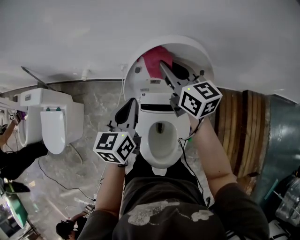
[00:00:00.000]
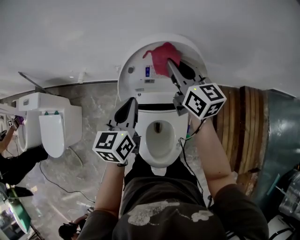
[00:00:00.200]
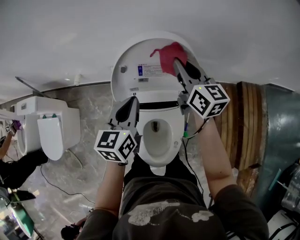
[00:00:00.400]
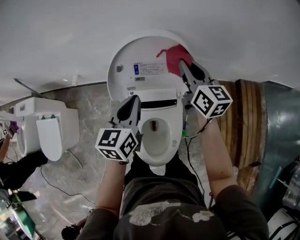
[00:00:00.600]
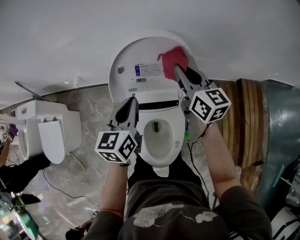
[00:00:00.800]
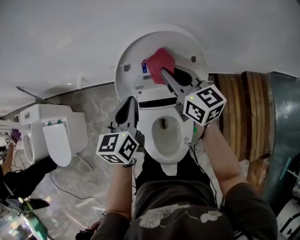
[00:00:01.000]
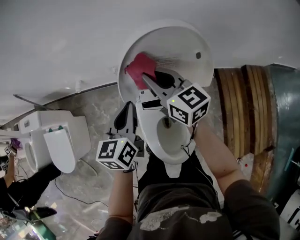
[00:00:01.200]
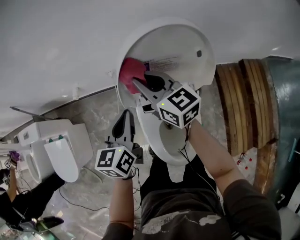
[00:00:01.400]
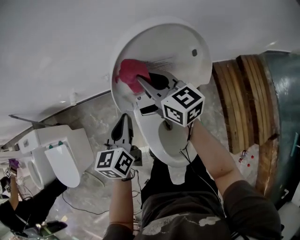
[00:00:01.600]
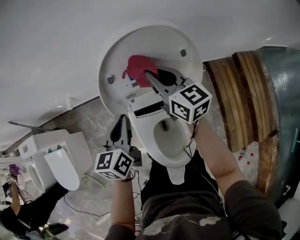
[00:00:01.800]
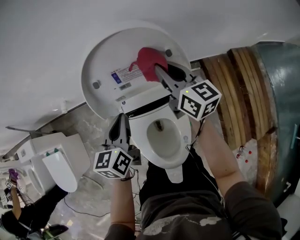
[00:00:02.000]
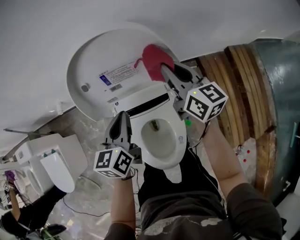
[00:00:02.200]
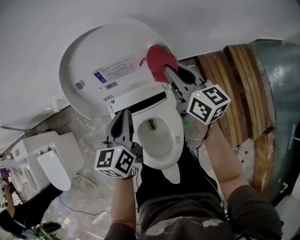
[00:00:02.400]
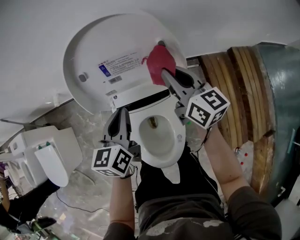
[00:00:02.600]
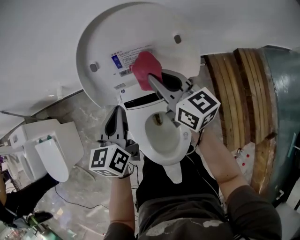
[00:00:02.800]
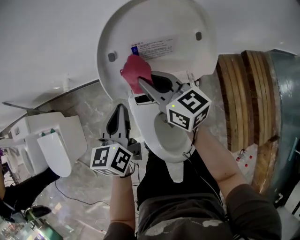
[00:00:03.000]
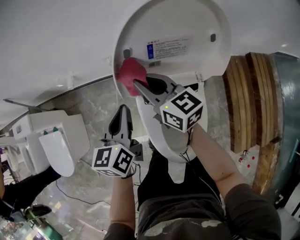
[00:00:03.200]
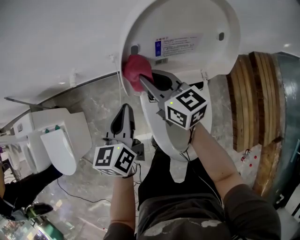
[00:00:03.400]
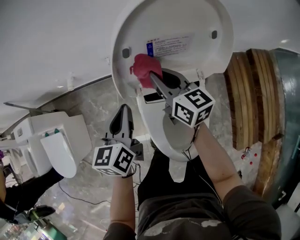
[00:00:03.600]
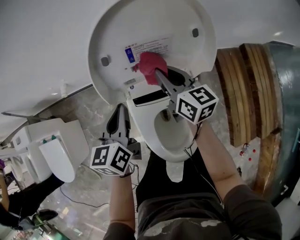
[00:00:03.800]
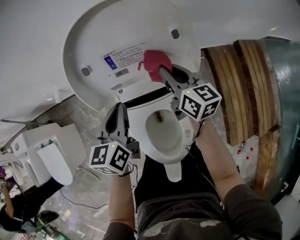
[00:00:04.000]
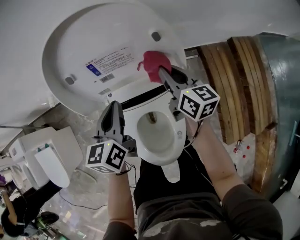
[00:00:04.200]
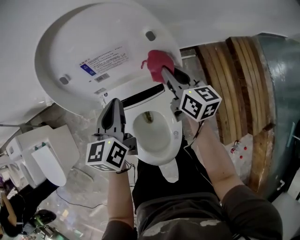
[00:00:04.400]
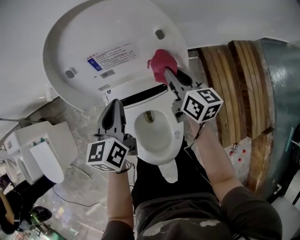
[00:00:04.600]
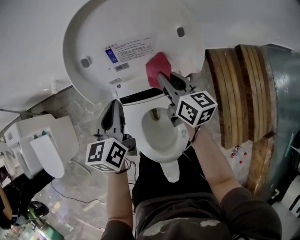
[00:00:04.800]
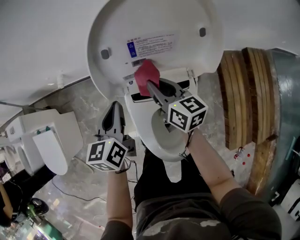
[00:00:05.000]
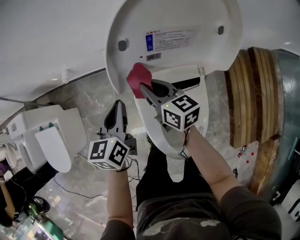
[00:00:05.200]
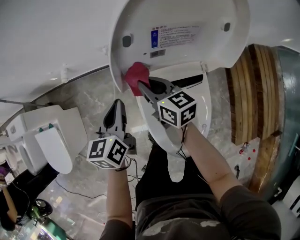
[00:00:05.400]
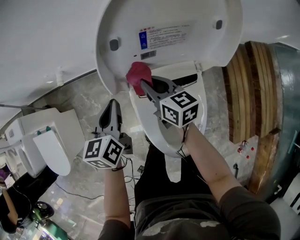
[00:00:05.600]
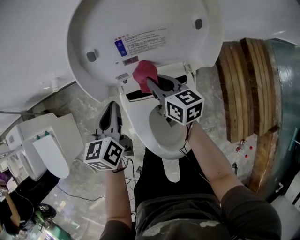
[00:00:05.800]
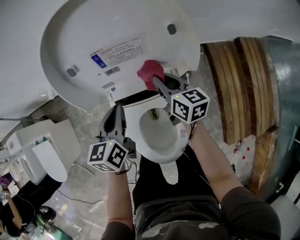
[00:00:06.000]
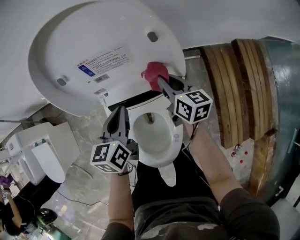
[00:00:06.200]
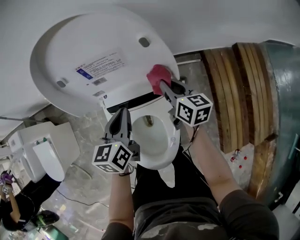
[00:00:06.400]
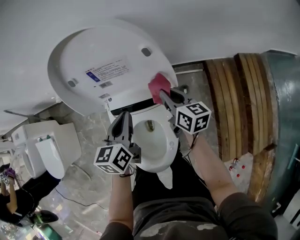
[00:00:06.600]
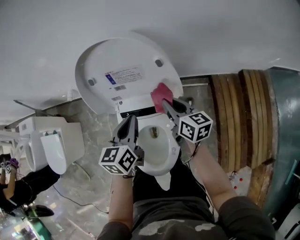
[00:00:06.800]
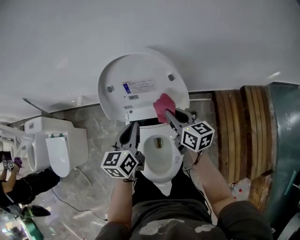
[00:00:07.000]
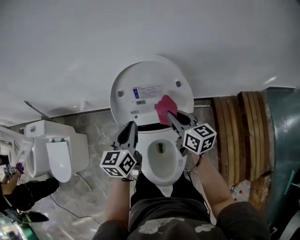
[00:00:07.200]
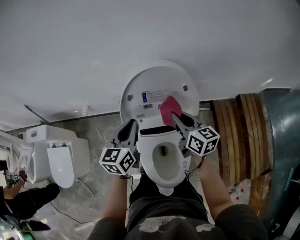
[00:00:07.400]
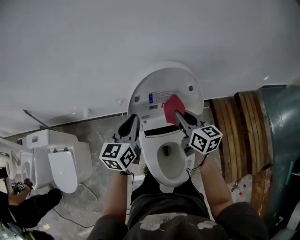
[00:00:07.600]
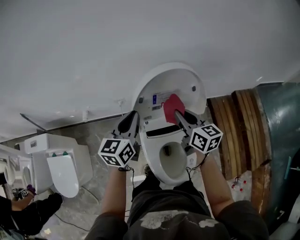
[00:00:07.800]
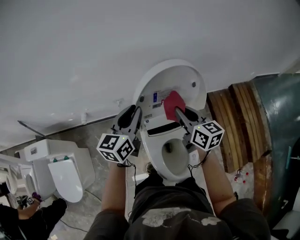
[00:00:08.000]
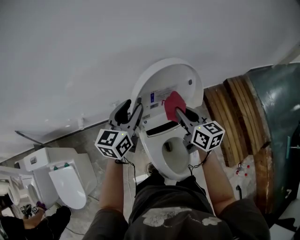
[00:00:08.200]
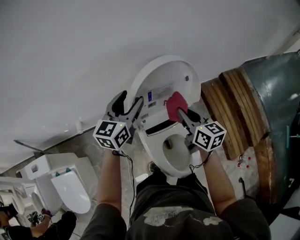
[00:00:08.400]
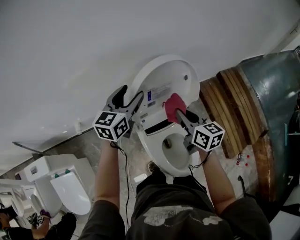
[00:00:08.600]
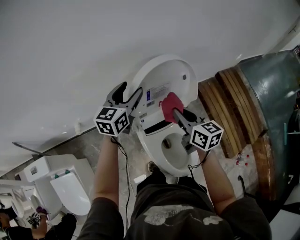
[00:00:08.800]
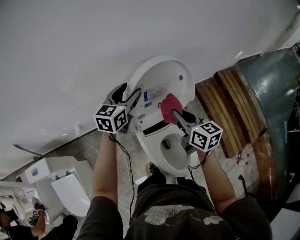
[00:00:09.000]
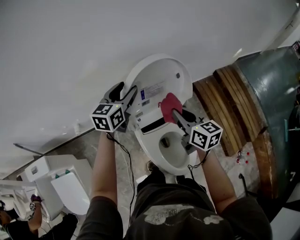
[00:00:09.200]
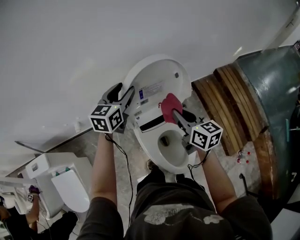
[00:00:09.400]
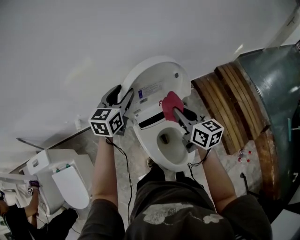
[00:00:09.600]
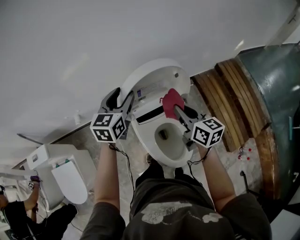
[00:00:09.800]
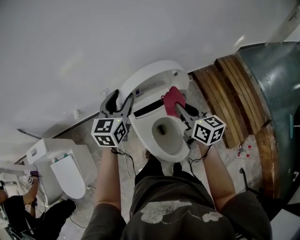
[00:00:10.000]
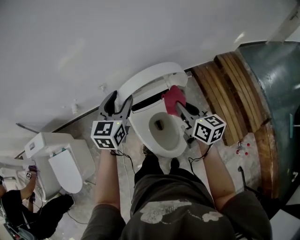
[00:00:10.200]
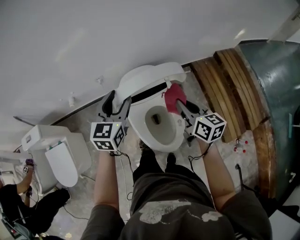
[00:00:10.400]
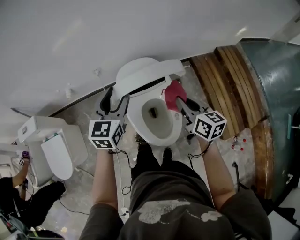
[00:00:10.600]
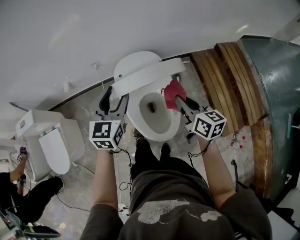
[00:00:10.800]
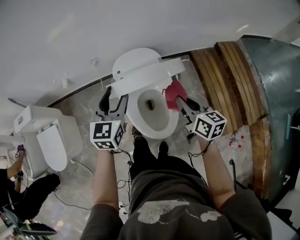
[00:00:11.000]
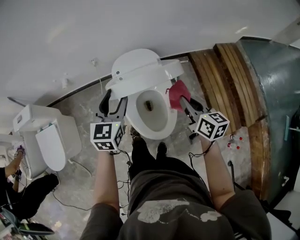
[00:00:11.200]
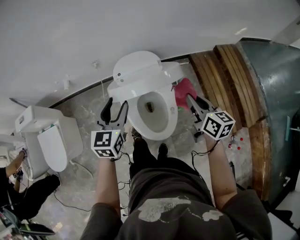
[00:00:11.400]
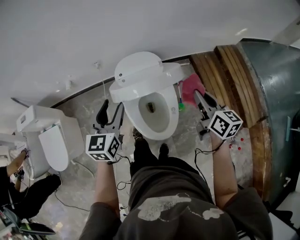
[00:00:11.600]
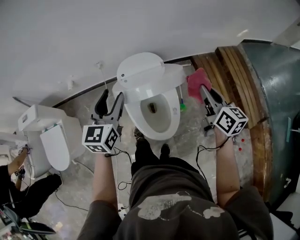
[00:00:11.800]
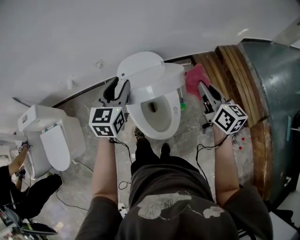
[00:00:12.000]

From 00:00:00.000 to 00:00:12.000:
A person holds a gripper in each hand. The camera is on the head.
From 00:00:00.000 to 00:00:01.600: Both grippers travel together downward, approximately 10 cm. The left gripper travels to the right and back again, about 5 cm each way. The right gripper goes to the right and returns, about 15 cm each way.
From 00:00:01.600 to 00:00:03.000: The right gripper goes about 5 cm downward, and goes to the right and returns, about 20 cm each way, while the left gripper reaches approximately 15 cm to the right, then returns.
From 00:00:03.000 to 00:00:04.400: The right gripper goes some 20 cm to the right, and changes its angle by roughly 30 degrees. The left gripper shifts approximately 15 cm to the right.
From 00:00:04.400 to 00:00:06.000: Both grippers move downward, approximately 5 cm. The left gripper goes to the left and returns, some 20 cm each way, while the right gripper reaches roughly 30 cm to the left, then returns.
From 00:00:06.000 to 00:00:07.600: Both grippers move upward, roughly 20 cm.
From 00:00:07.600 to 00:00:09.000: The left gripper moves forward, about 10 cm, changes its angle by roughly 30 degrees, and opens up, while the right gripper changes place by about 5 cm.
From 00:00:09.000 to 00:00:10.400: The left gripper heads backward, covering about 20 cm. Meanwhile the right gripper goes roughly 20 cm backward and to the right.
From 00:00:10.400 to 00:00:12.000: The right gripper travels to the right and upward by approximately 10 cm.

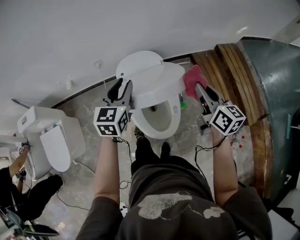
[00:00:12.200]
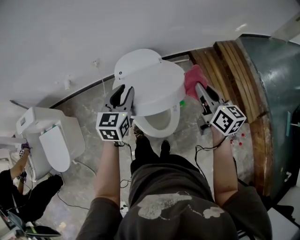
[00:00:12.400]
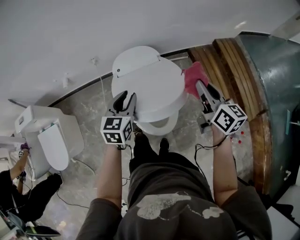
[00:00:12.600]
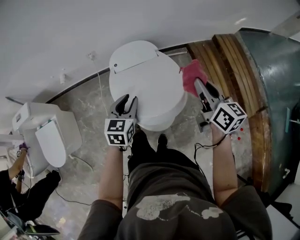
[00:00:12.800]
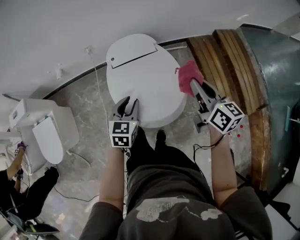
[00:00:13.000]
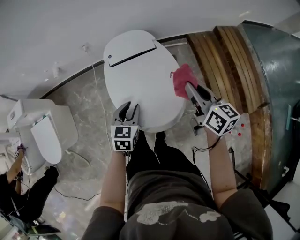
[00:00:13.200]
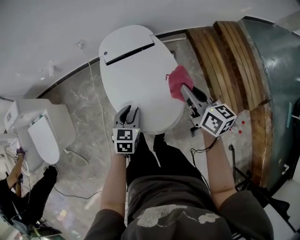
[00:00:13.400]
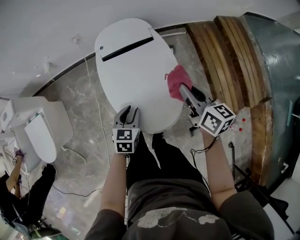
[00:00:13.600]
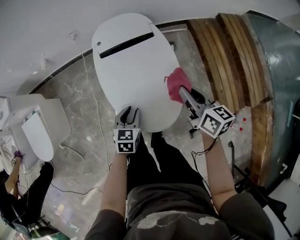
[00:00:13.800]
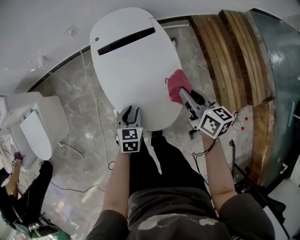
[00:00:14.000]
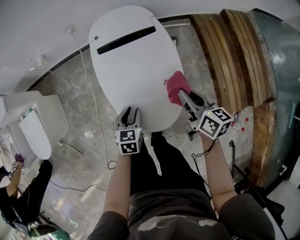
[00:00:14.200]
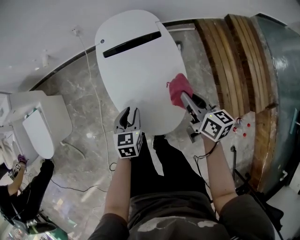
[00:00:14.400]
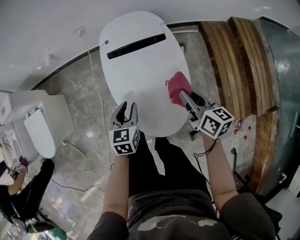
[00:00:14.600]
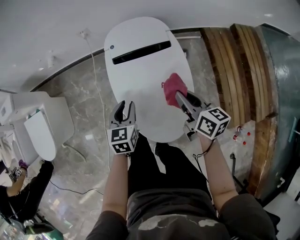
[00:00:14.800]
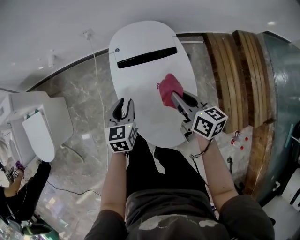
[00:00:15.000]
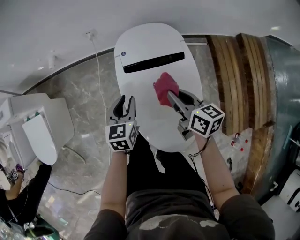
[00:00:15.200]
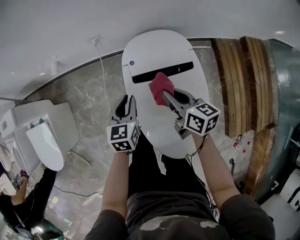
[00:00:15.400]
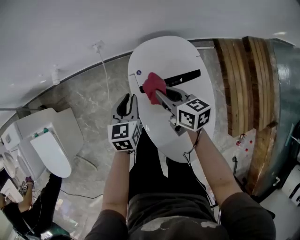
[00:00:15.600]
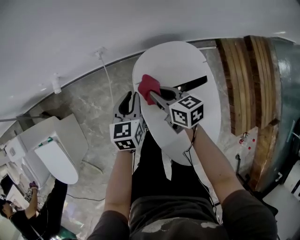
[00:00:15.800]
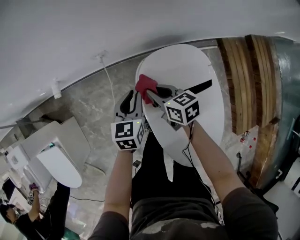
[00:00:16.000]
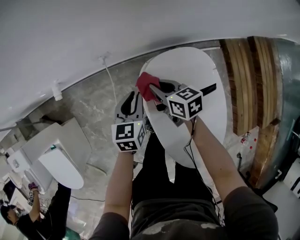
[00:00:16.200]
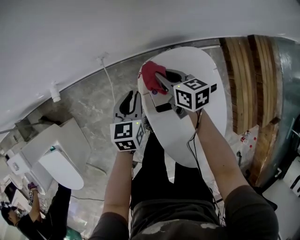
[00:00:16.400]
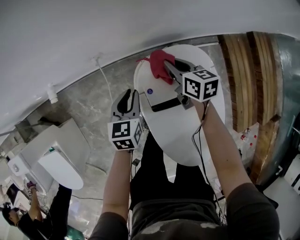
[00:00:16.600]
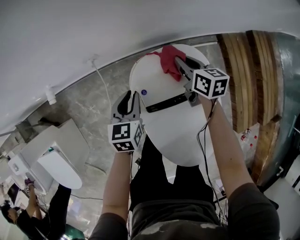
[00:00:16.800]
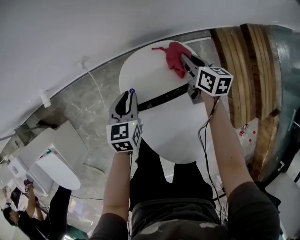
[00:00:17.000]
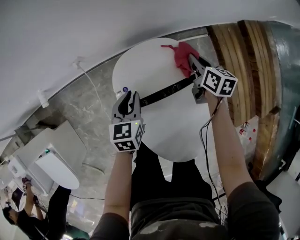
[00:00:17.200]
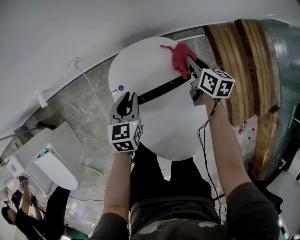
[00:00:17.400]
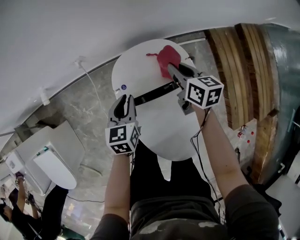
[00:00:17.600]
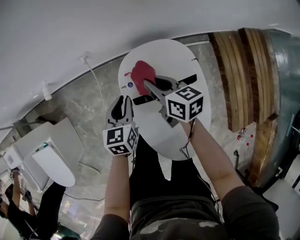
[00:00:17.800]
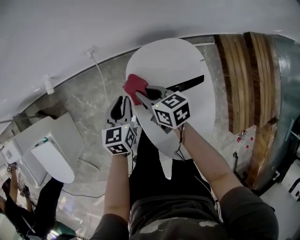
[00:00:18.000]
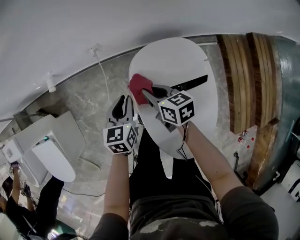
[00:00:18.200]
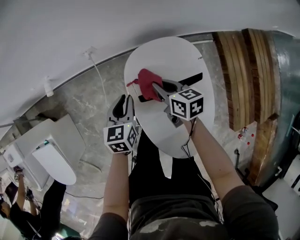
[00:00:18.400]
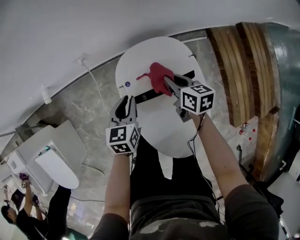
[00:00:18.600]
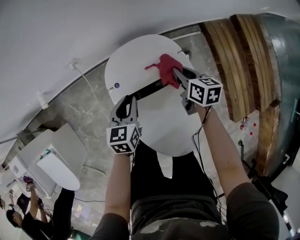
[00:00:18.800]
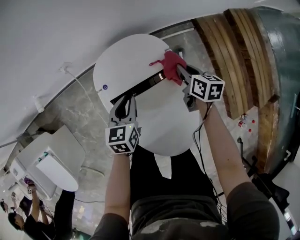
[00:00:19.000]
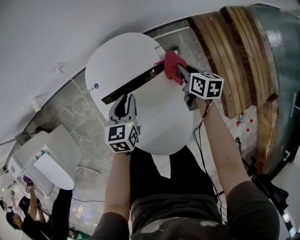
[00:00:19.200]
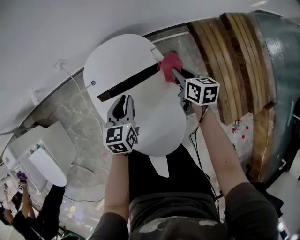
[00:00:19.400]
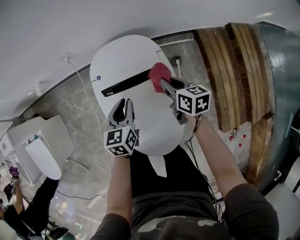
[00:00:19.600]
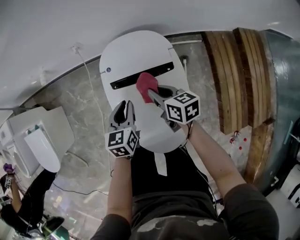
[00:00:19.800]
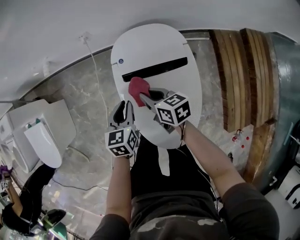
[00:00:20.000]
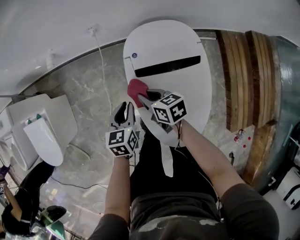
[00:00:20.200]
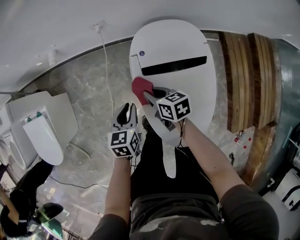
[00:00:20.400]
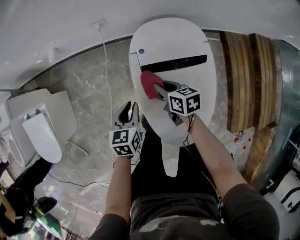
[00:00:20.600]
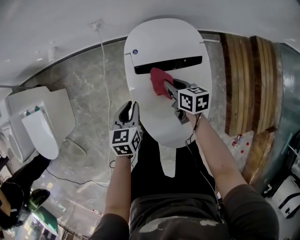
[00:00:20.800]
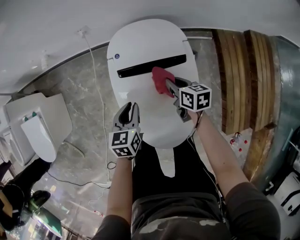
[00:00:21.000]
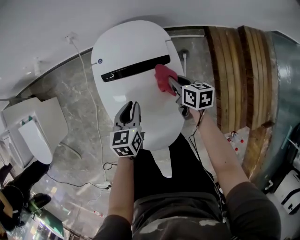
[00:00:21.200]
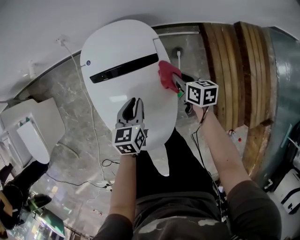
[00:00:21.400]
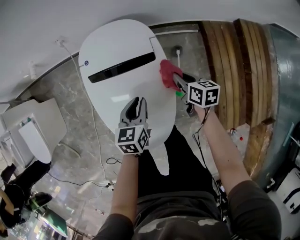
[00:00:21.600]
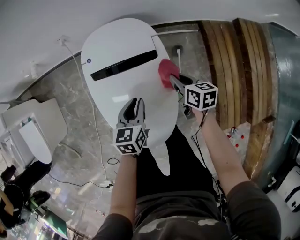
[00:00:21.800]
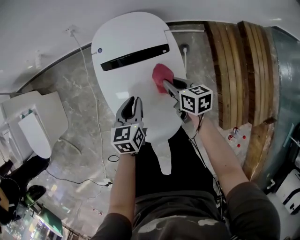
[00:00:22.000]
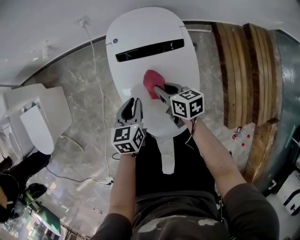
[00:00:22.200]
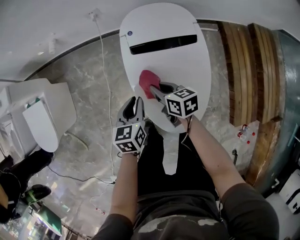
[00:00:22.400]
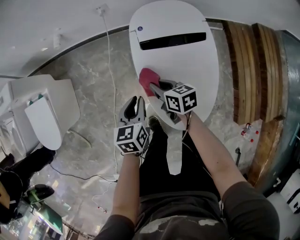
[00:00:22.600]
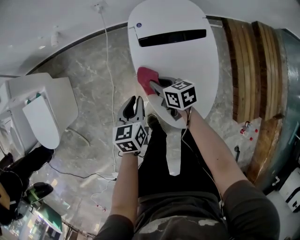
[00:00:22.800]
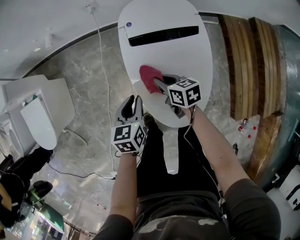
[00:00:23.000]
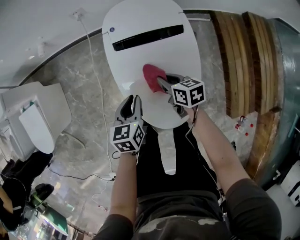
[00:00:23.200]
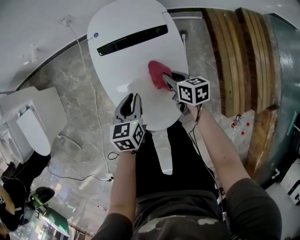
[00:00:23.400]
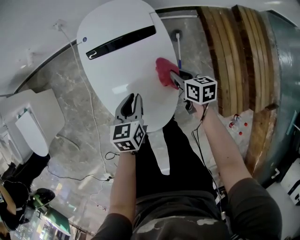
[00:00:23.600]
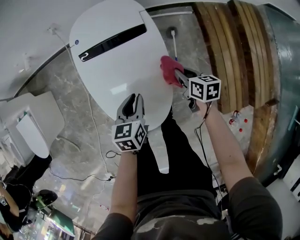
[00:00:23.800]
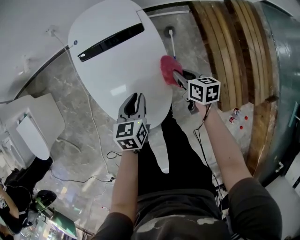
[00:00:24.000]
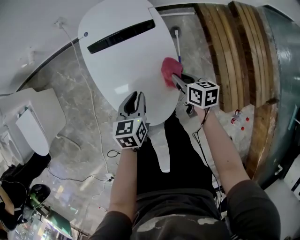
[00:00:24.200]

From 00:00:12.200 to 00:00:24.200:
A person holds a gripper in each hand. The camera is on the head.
From 00:00:12.200 to 00:00:13.800: The right gripper moves downward, roughly 20 cm; the left gripper heads downward and backward, covering about 35 cm, and changes its angle by approximately 30 degrees.
From 00:00:13.800 to 00:00:15.200: The two grippers go some 20 cm forward and to the left.
From 00:00:15.200 to 00:00:16.600: The grippers both shift forward by some 25 cm.
From 00:00:16.600 to 00:00:18.200: The right gripper moves some 15 cm.
From 00:00:18.200 to 00:00:19.800: The grippers both shift to the right and backward by some 20 cm.
From 00:00:19.800 to 00:00:21.200: The left gripper goes approximately 5 cm backward, and travels to the left and back again, roughly 15 cm each way; the right gripper heads to the right and downward, covering about 15 cm.
From 00:00:21.200 to 00:00:22.600: The left gripper heads to the left, covering about 15 cm. Meanwhile the right gripper travels to the left by about 25 cm.
From 00:00:22.600 to 00:00:24.200: The two grippers go approximately 25 cm to the right.
